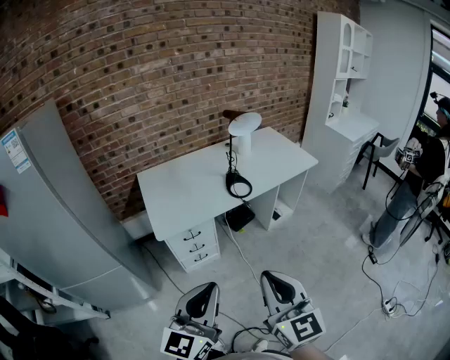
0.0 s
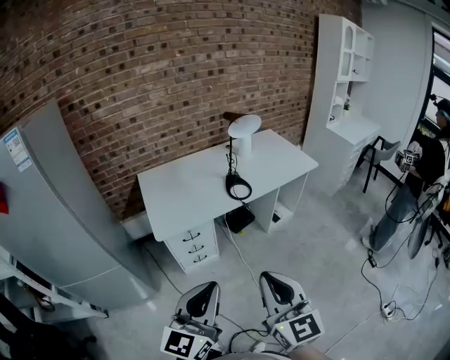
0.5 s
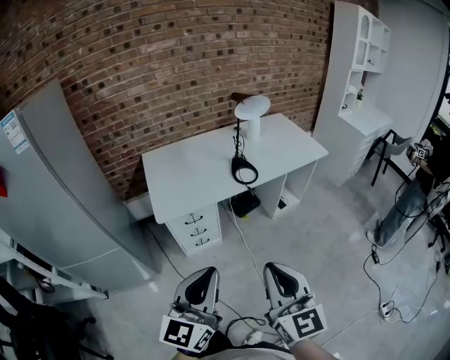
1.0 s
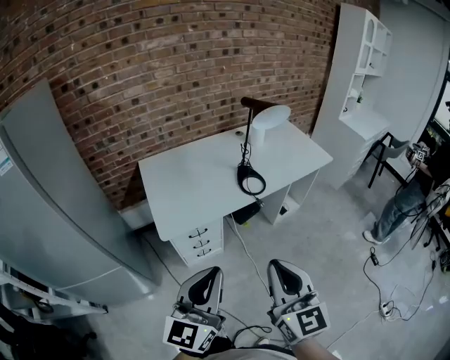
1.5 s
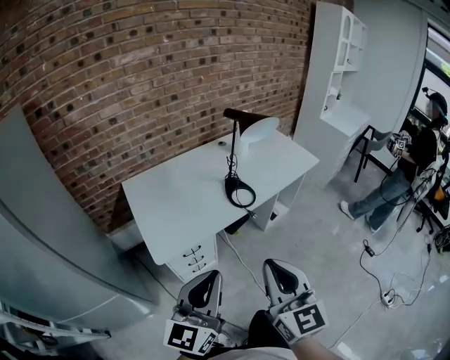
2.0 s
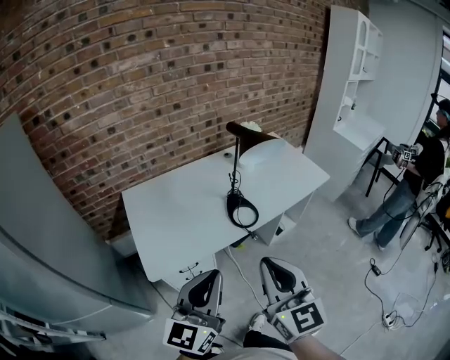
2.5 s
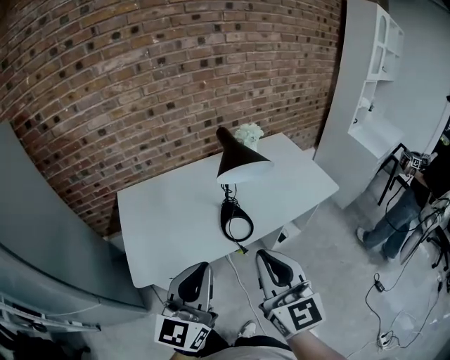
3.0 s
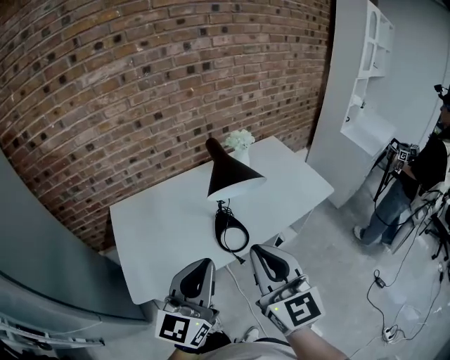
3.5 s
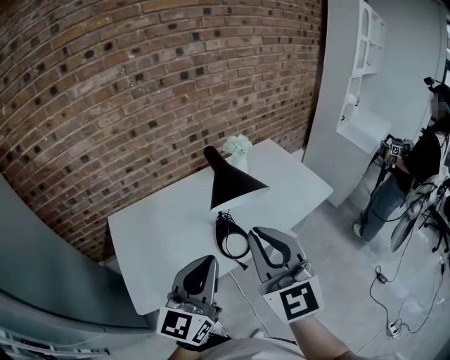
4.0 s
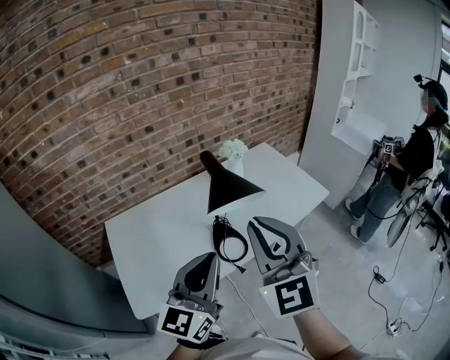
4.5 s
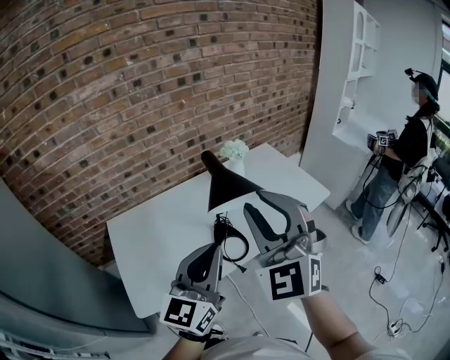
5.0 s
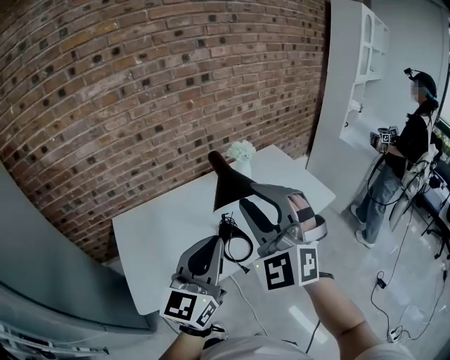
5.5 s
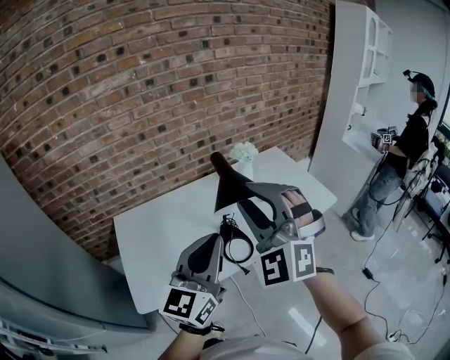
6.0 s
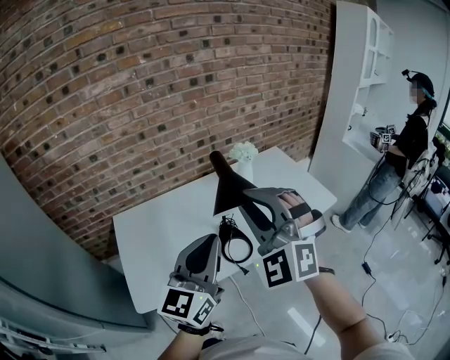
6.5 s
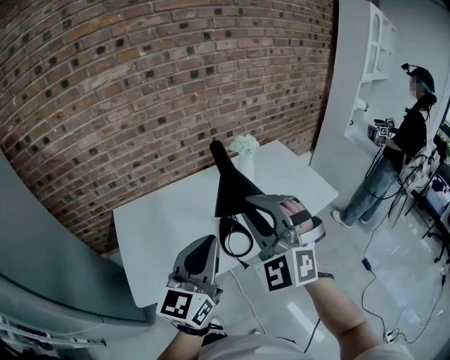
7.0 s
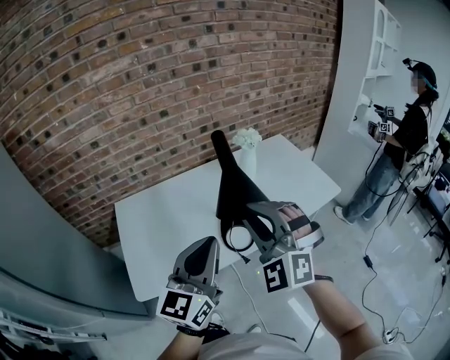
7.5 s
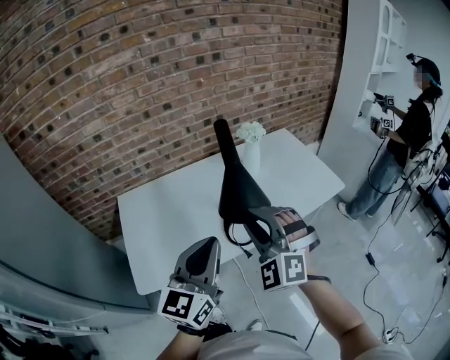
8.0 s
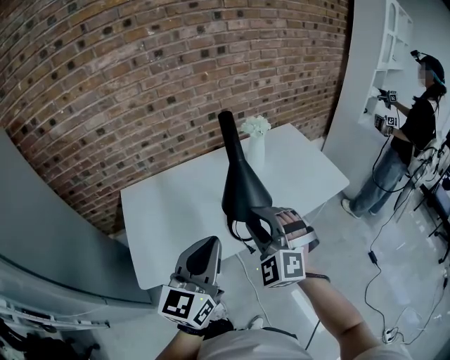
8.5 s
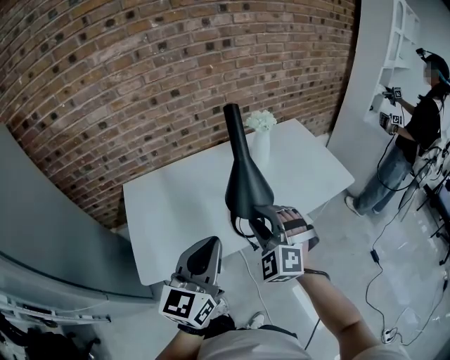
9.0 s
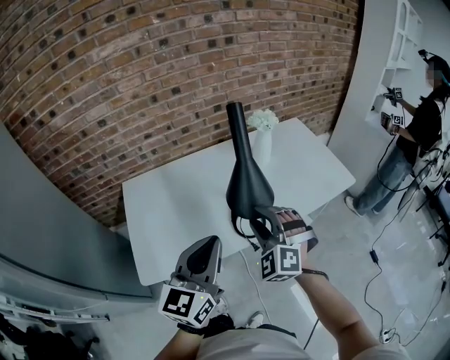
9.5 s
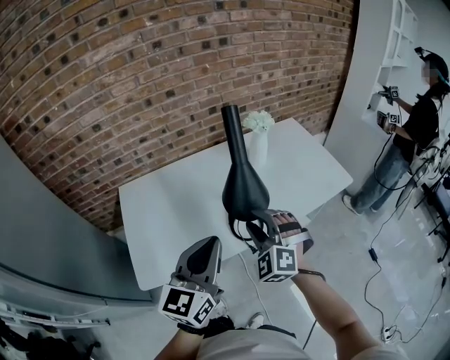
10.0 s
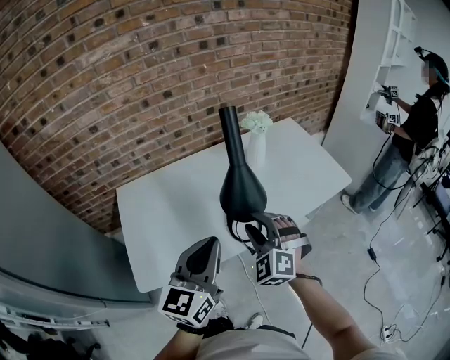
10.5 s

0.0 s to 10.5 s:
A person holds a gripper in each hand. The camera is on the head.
0.0 to 2.0 s: The left gripper heads forward, covering approximately 15 cm. Meanwhile the right gripper travels forward and to the left by roughly 15 cm.
2.0 to 4.0 s: The right gripper shifts about 30 cm forward. The left gripper is displaced forward and to the right by approximately 30 cm.
4.0 to 6.5 s: The left gripper ends up some 5 cm from where it was; the right gripper goes some 5 cm forward, and twists some 50 degrees counterclockwise, seen from behind.
6.5 to 8.5 s: The right gripper moves downward, roughly 15 cm; the left gripper travels downward by some 5 cm.
8.5 to 10.5 s: The right gripper is displaced downward by about 10 cm.

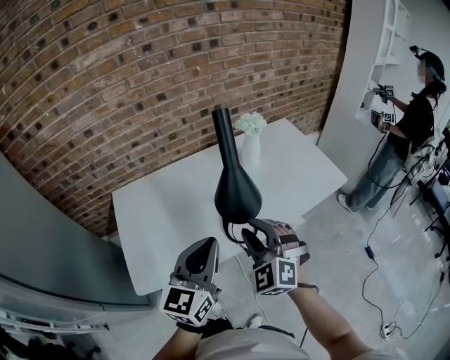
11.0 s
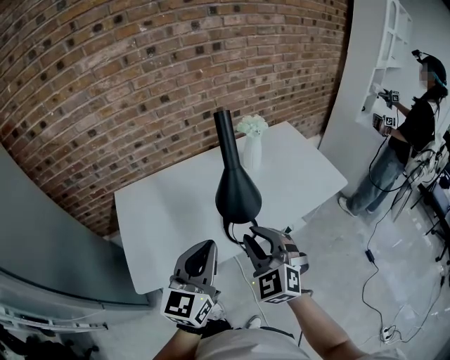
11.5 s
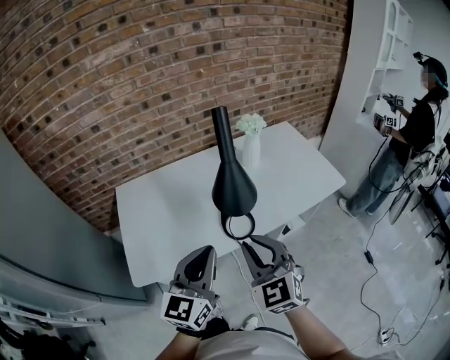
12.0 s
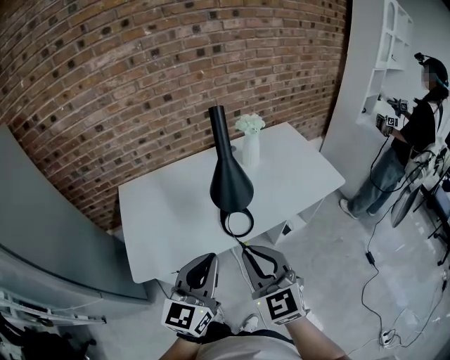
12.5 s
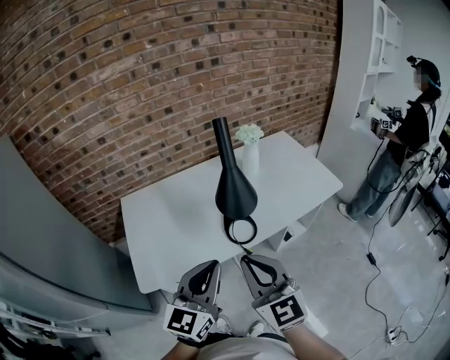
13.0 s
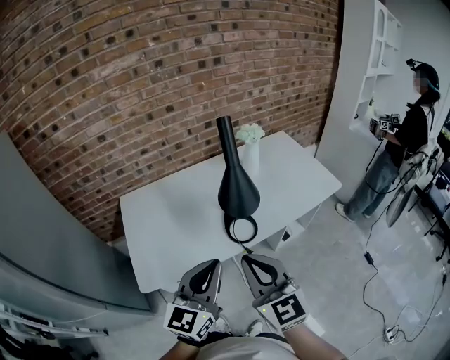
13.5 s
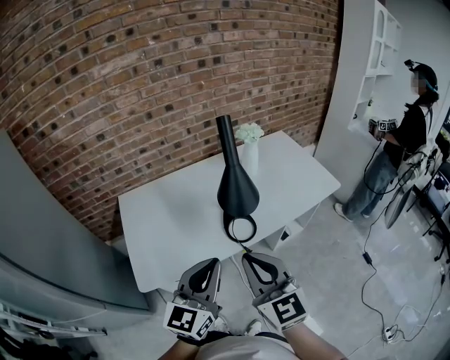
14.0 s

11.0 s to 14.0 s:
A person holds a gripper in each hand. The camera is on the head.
11.0 to 12.5 s: Both grippers travel together backward, some 10 cm. The right gripper turns by some 30 degrees.
12.5 to 14.0 s: The right gripper changes place by roughly 5 cm.

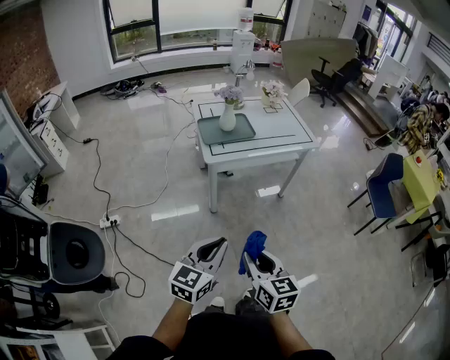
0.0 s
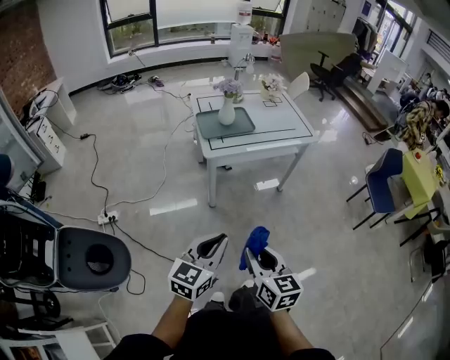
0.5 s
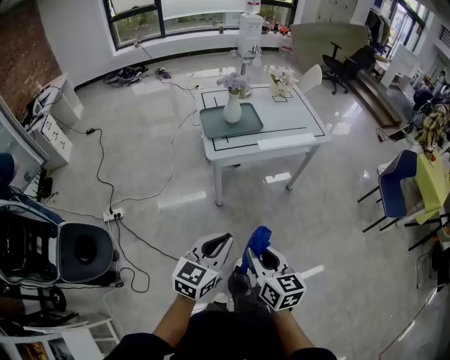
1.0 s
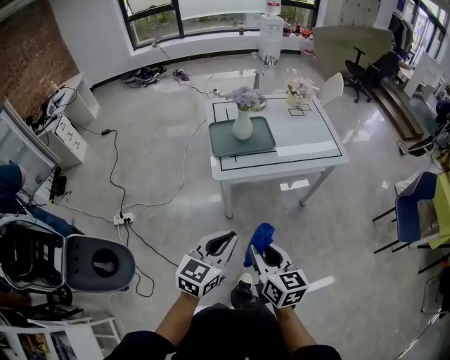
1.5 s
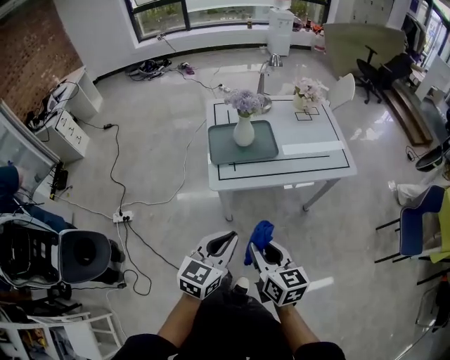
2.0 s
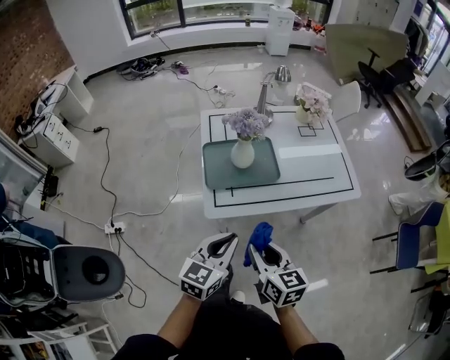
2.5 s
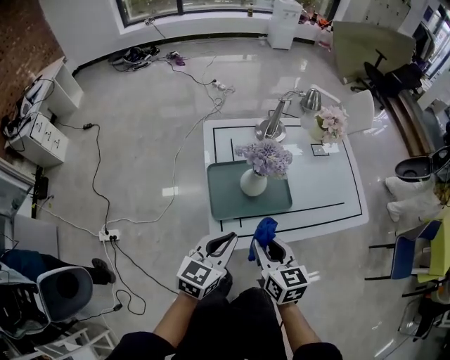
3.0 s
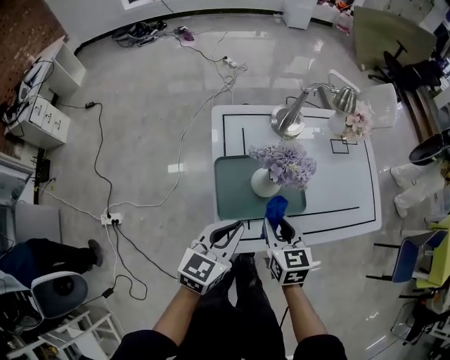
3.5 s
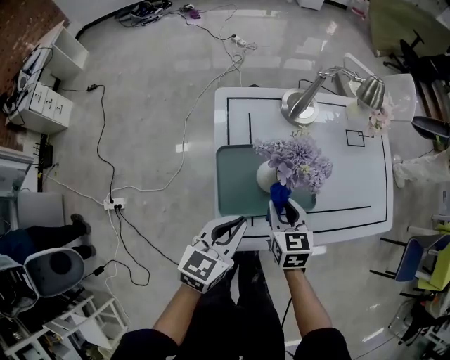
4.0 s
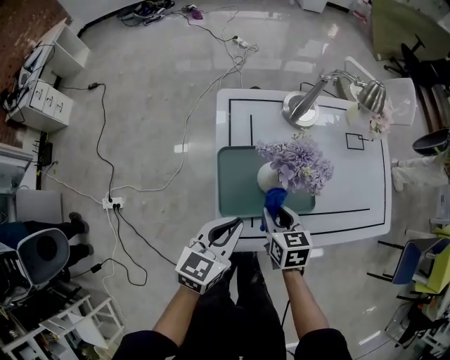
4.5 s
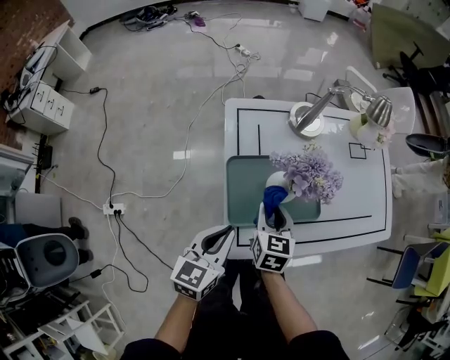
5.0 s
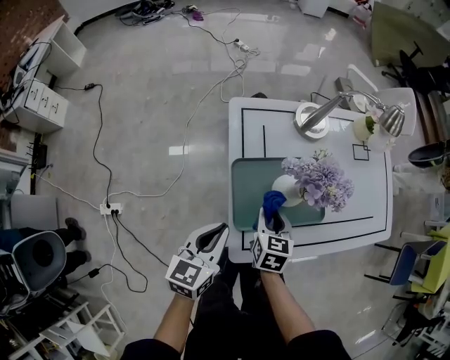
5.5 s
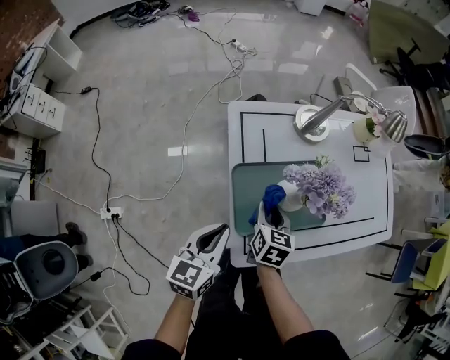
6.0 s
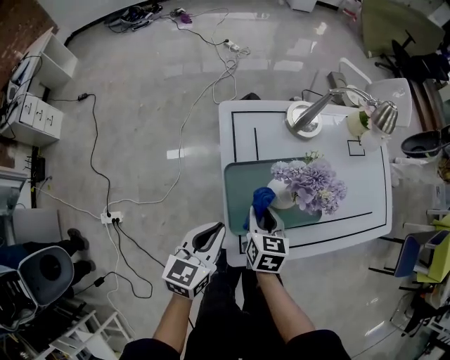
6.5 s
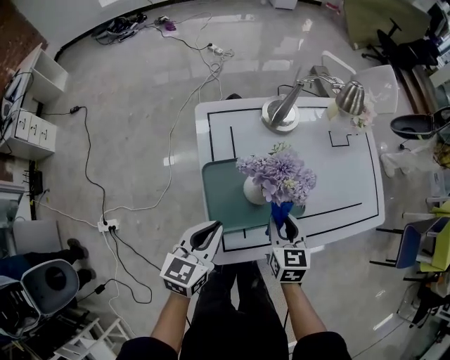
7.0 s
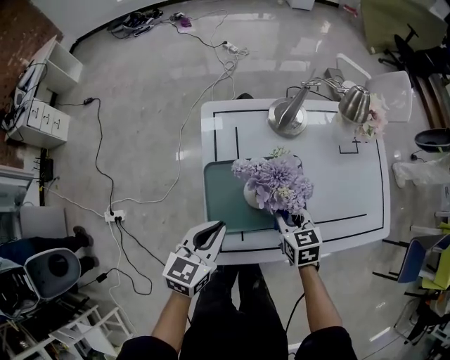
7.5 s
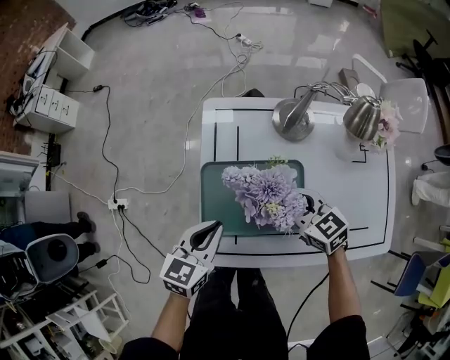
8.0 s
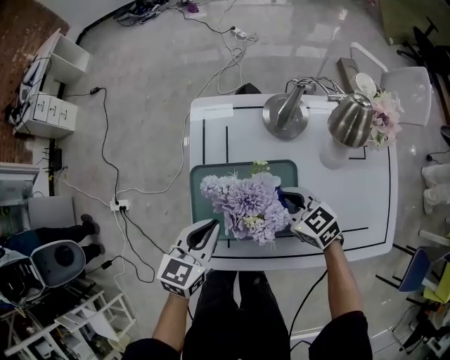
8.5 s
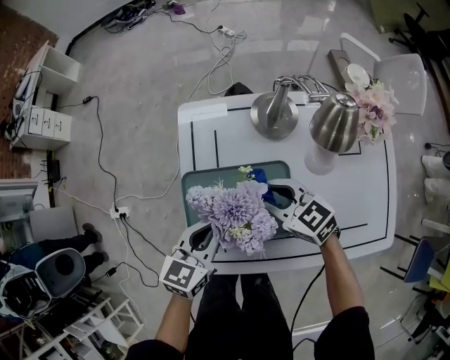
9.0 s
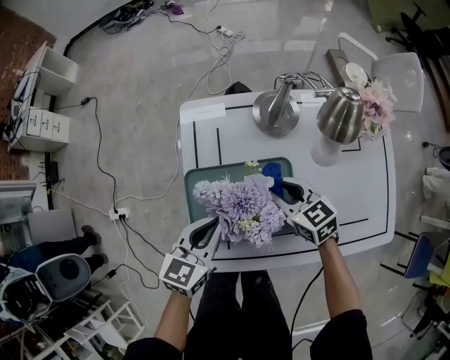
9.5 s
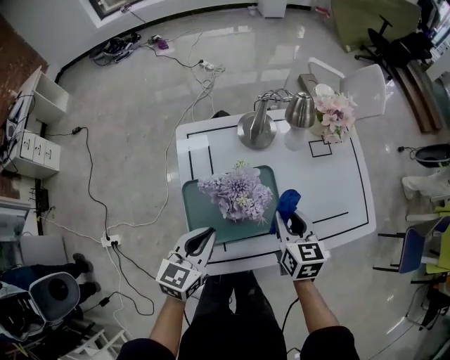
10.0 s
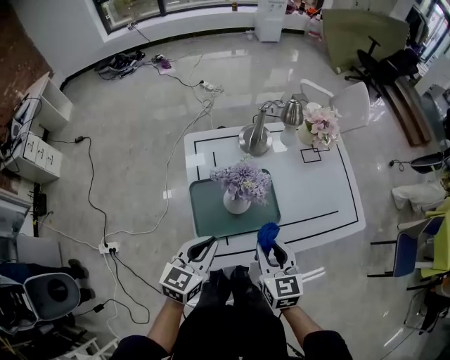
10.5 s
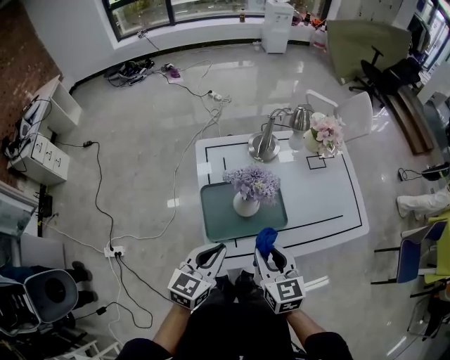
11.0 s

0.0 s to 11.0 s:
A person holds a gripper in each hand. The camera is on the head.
0.0 to 2.0 s: The grippers both shift forward by about 30 cm.
2.0 to 3.5 s: Both grippers travel together forward, roughly 40 cm.
3.5 to 5.5 s: The left gripper heads to the left and downward, covering some 10 cm. Meanwhile the right gripper heads downward and to the left, covering approximately 15 cm.
5.5 to 7.5 s: Both grippers travel together to the right, some 10 cm. The right gripper rotates roughly 20 degrees.
7.5 to 9.0 s: The left gripper travels to the right by about 10 cm. The right gripper is displaced forward by approximately 10 cm, and changes its angle by about 40 degrees.
9.0 to 11.0 s: The left gripper ends up approximately 20 cm from where it was; the right gripper changes place by about 25 cm, and rotates about 40 degrees.

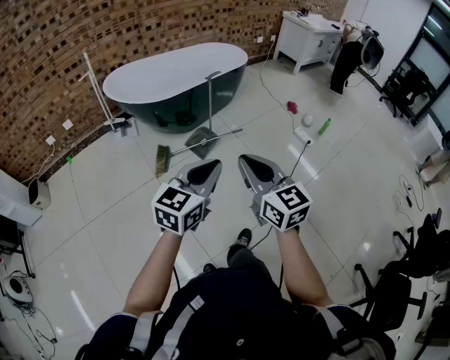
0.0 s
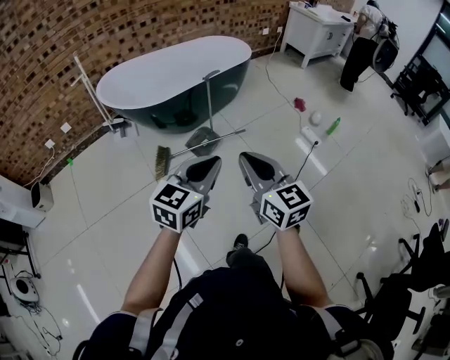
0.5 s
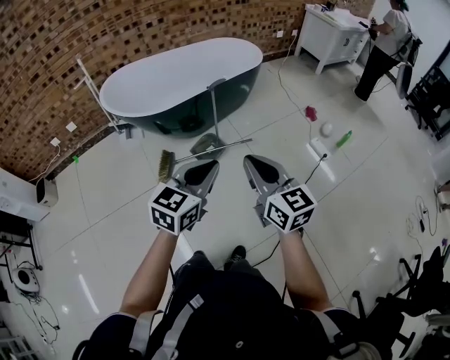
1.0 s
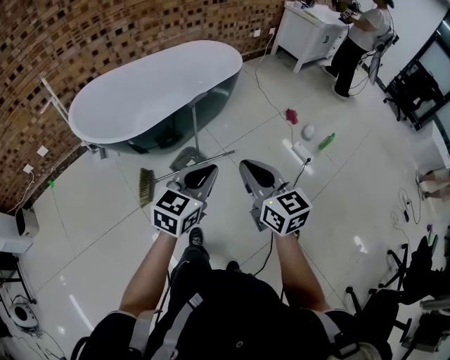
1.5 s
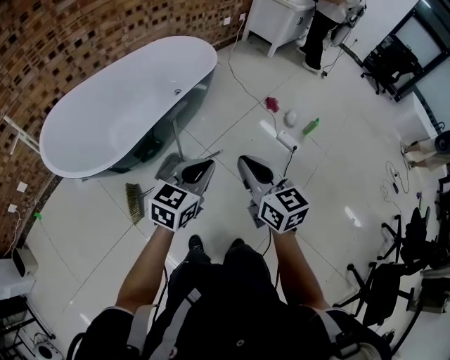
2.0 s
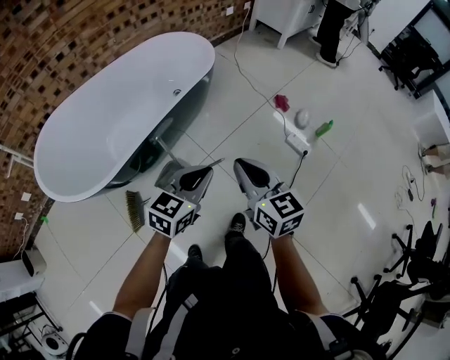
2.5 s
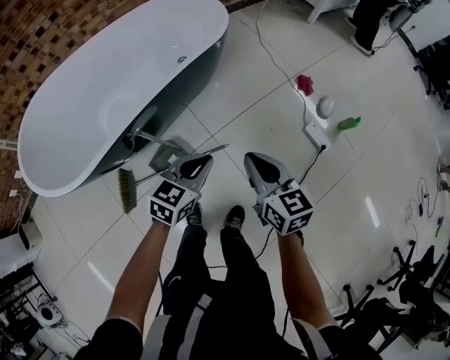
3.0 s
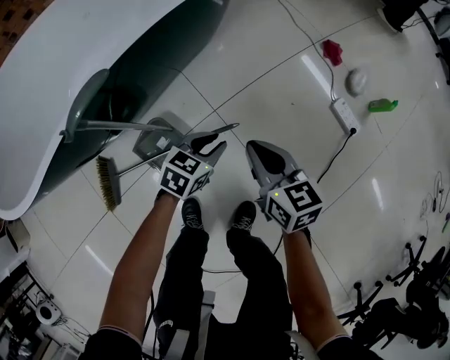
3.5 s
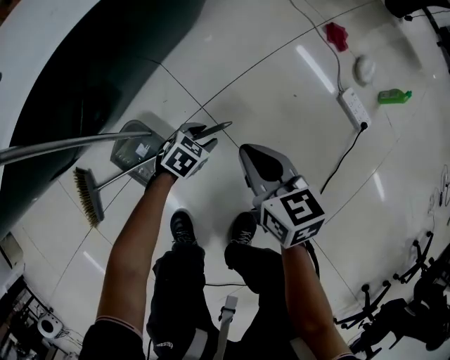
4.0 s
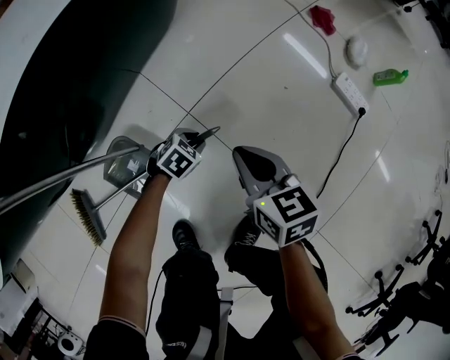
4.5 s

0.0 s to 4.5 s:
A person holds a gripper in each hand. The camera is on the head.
0.0 to 2.0 s: The pair of grippers is taken forward, some 40 cm.
2.0 to 4.5 s: The right gripper moves downward and forward, some 60 cm, and swivels some 30 degrees; the left gripper goes about 80 cm downward, angles its fingers downward, by about 50 degrees, and opens up.
